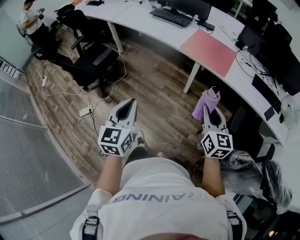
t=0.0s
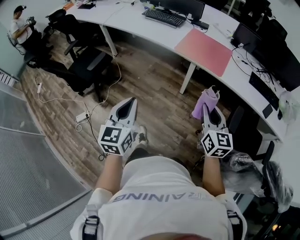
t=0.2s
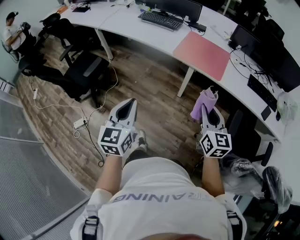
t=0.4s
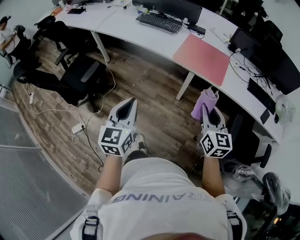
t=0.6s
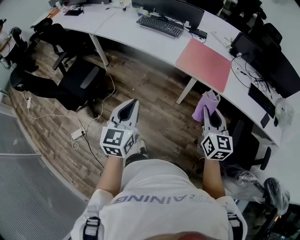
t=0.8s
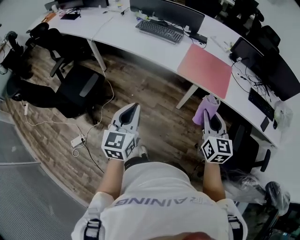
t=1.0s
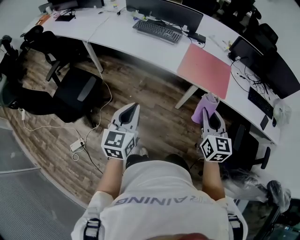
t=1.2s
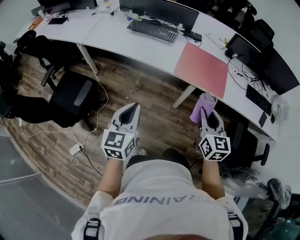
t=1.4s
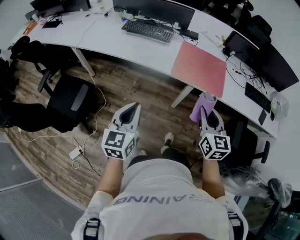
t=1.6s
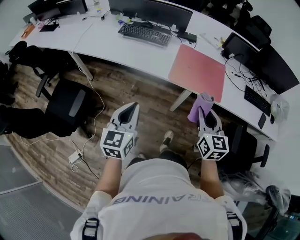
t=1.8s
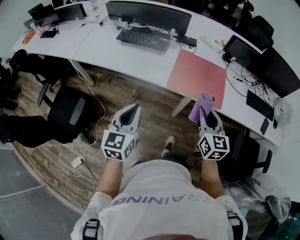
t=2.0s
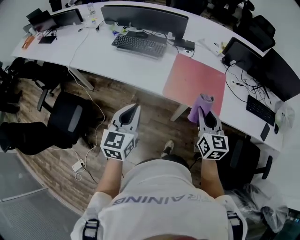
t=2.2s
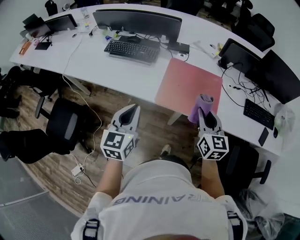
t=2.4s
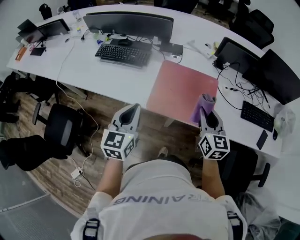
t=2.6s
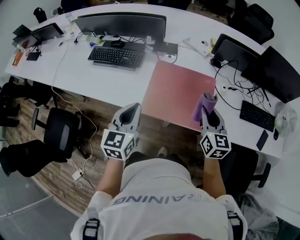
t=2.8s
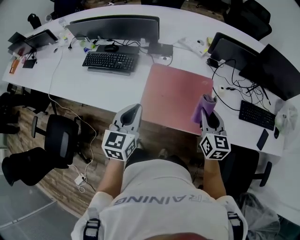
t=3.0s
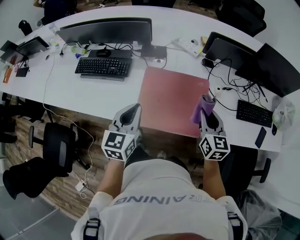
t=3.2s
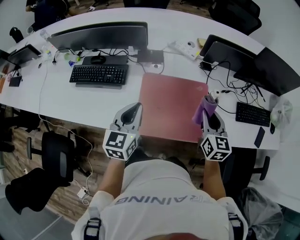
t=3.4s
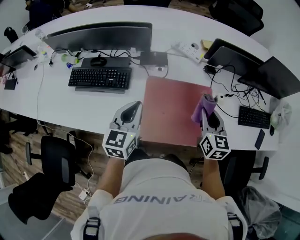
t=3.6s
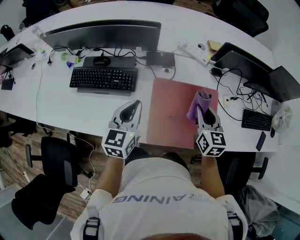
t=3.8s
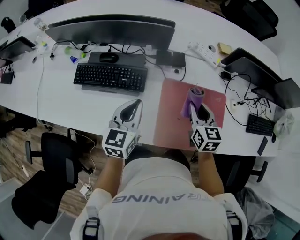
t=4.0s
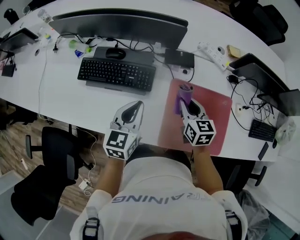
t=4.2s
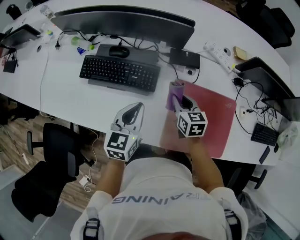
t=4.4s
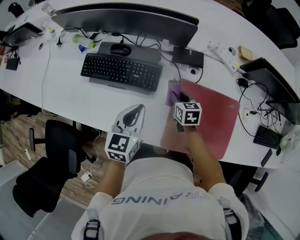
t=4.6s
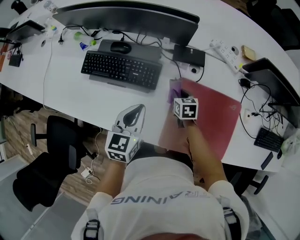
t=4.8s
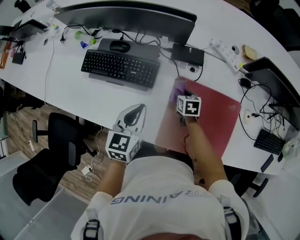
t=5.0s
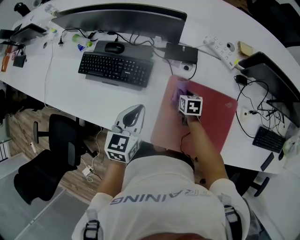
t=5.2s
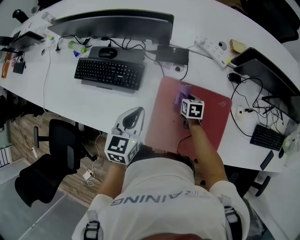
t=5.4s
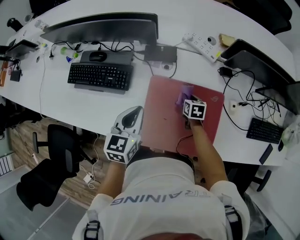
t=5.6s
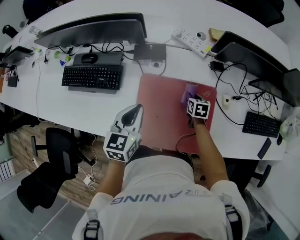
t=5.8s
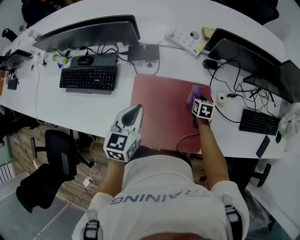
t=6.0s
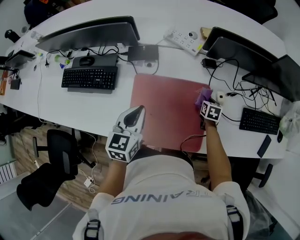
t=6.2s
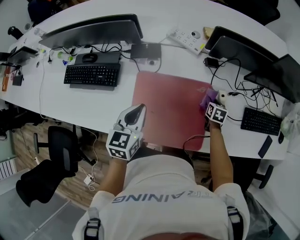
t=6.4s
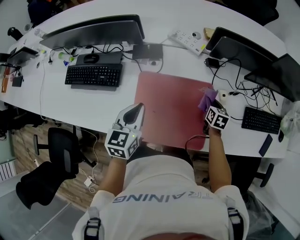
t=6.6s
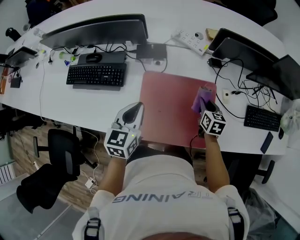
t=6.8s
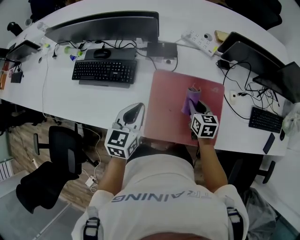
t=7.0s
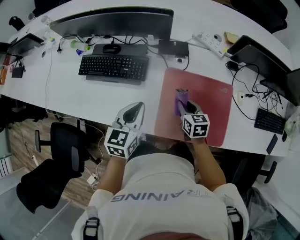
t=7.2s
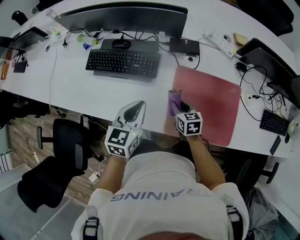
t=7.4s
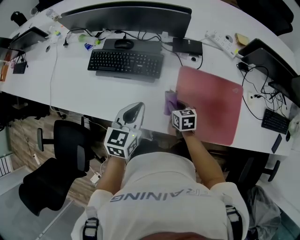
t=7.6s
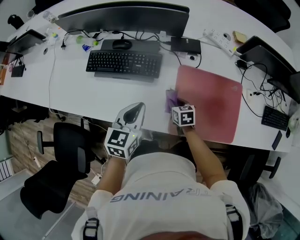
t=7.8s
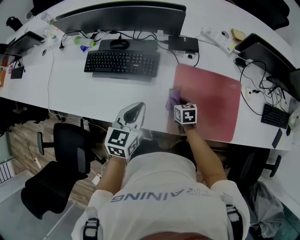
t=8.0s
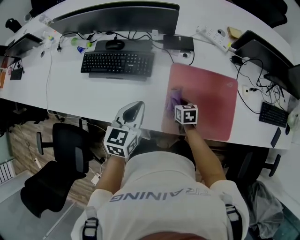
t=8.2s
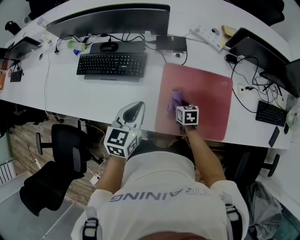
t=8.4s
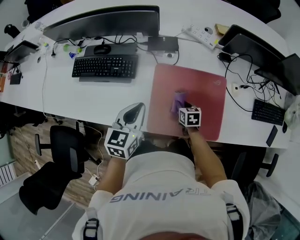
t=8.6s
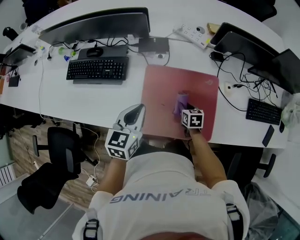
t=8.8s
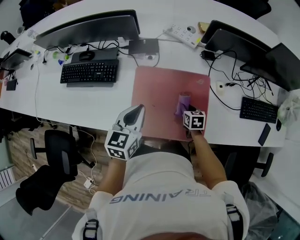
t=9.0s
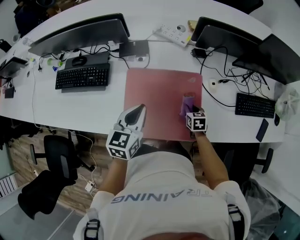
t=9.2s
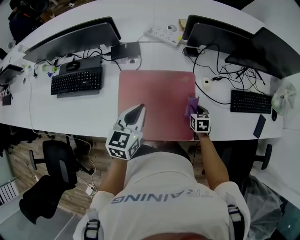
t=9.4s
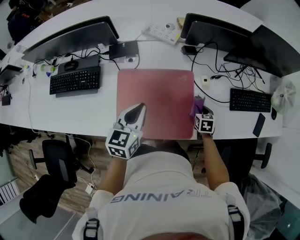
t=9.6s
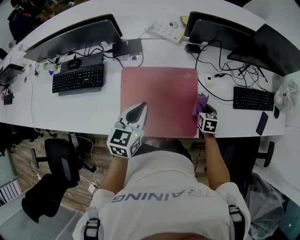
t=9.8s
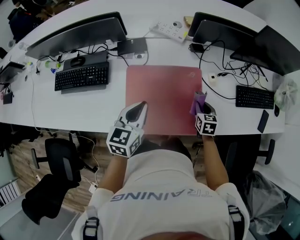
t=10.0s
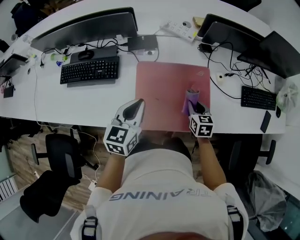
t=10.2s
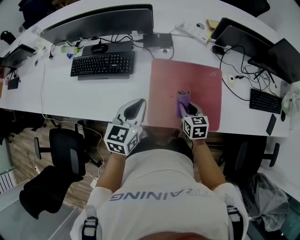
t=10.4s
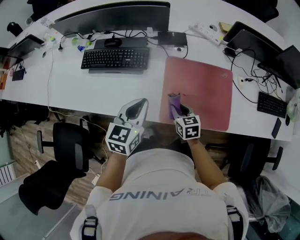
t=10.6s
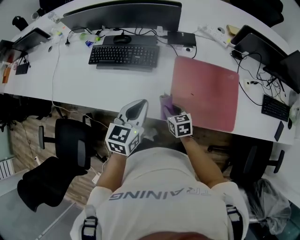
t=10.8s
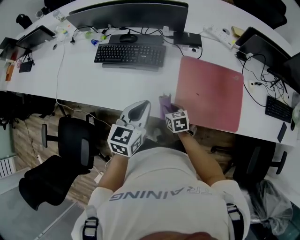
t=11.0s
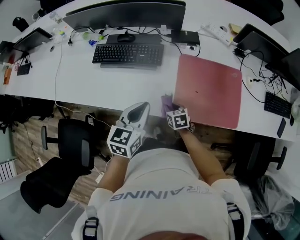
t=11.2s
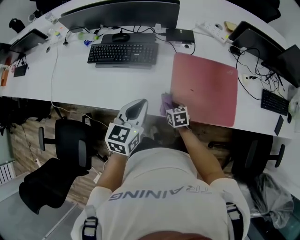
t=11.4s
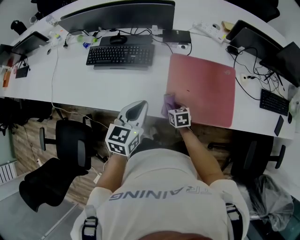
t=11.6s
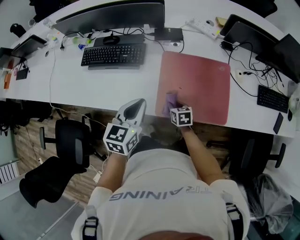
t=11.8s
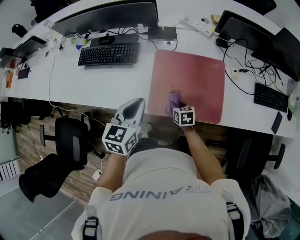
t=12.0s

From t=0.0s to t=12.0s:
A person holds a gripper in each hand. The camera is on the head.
From t=0.0s to t=1.6s: The two grippers go some 30 cm forward and to the left.
From t=1.6s to t=3.0s: The grippers both shift forward and to the right by approximately 40 cm.
From t=3.0s to t=4.4s: The right gripper shifts roughly 40 cm to the left, forward and downward, and rotates about 20 degrees; the left gripper is displaced forward, to the left and downward by some 30 cm.
From t=4.4s to t=6.0s: The left gripper moves to the right, roughly 25 cm, while the right gripper goes about 35 cm to the right, and changes its angle by about 30 degrees.
From t=6.0s to t=7.6s: The right gripper is displaced to the left by approximately 35 cm, and rotates approximately 20 degrees. Meanwhile the left gripper heads to the left, covering some 25 cm.
From t=7.6s to t=9.0s: The grippers both shift to the right by about 25 cm.
From t=9.0s to t=10.4s: The right gripper goes approximately 15 cm to the left, upward and backward, while the left gripper is displaced to the left by some 10 cm.
From t=10.4s to t=12.0s: The left gripper heads backward, covering some 5 cm, and reaches roughly 15 cm to the left, then returns; the right gripper shifts roughly 10 cm downward and backward, and travels to the left and back again, roughly 20 cm each way.

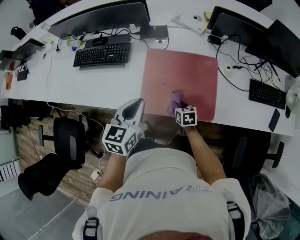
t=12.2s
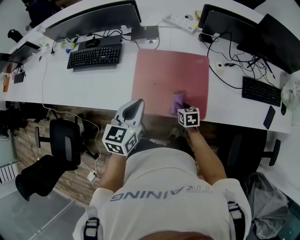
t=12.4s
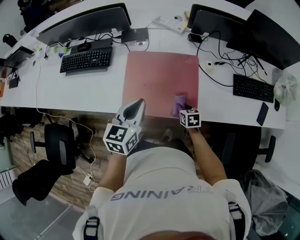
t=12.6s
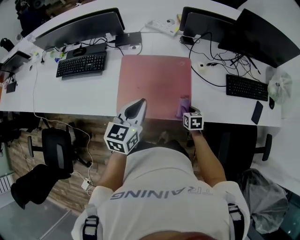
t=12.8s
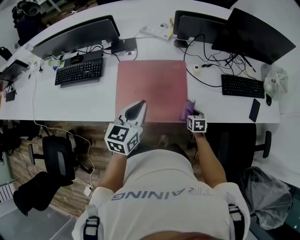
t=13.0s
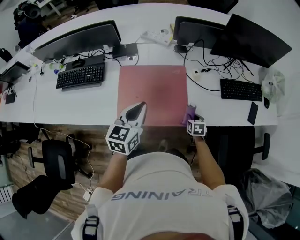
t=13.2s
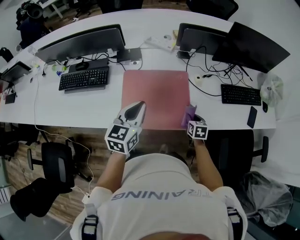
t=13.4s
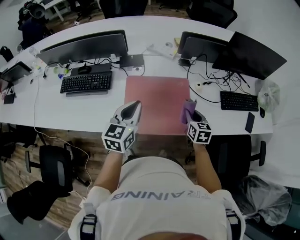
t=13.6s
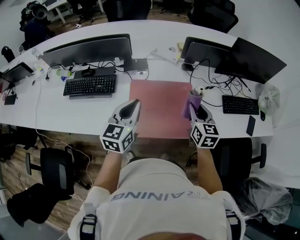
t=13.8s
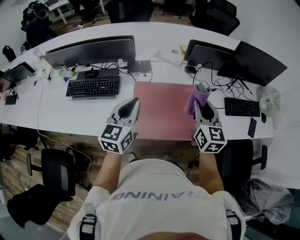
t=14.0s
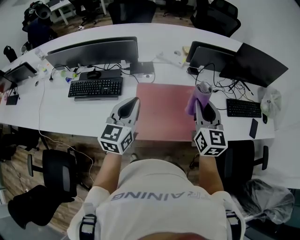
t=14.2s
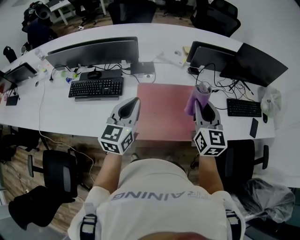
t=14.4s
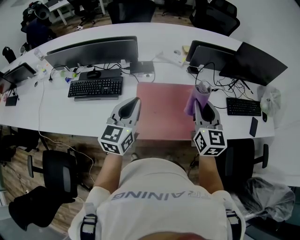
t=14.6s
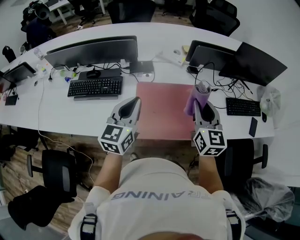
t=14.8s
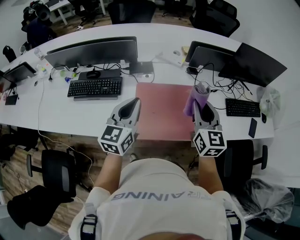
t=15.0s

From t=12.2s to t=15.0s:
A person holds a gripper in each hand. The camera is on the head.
From t=12.2s to t=13.6s: The left gripper is displaced upward and to the right by roughly 10 cm. Meanwhile the right gripper moves upward and to the right, approximately 25 cm, and turns by roughly 30 degrees.
From t=13.6s to t=15.0s: The right gripper is displaced upward and to the left by approximately 25 cm, and swivels about 30 degrees, while the left gripper shifts about 10 cm to the left and upward.

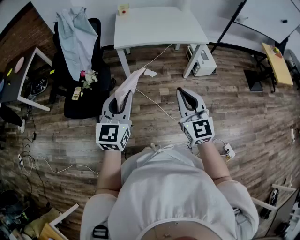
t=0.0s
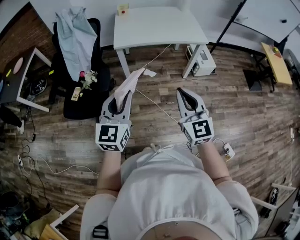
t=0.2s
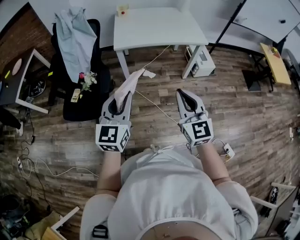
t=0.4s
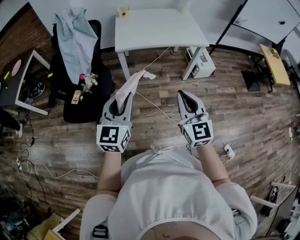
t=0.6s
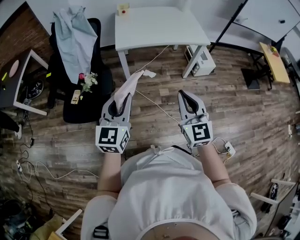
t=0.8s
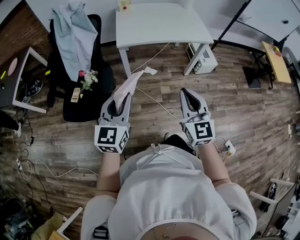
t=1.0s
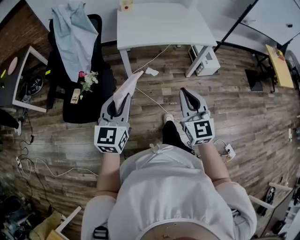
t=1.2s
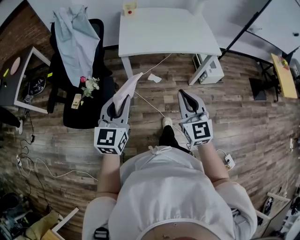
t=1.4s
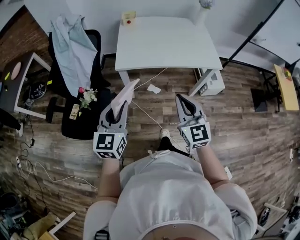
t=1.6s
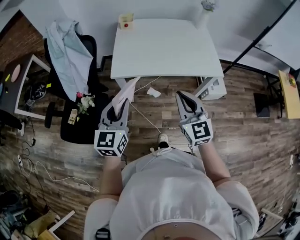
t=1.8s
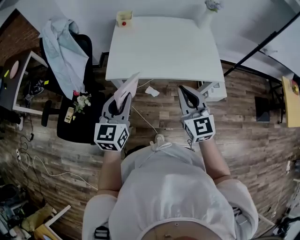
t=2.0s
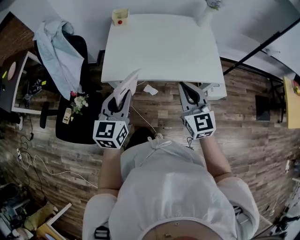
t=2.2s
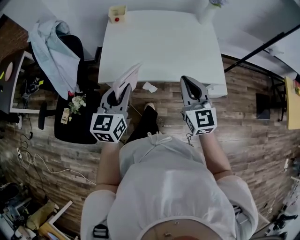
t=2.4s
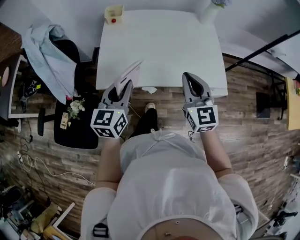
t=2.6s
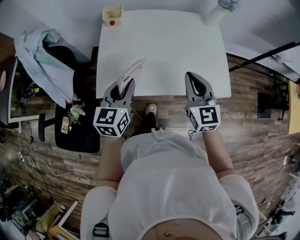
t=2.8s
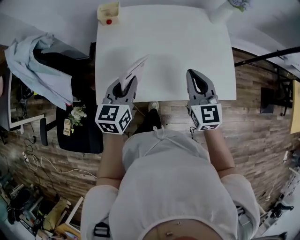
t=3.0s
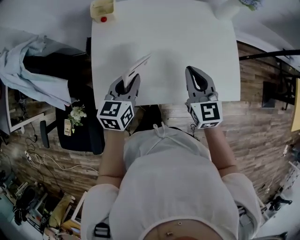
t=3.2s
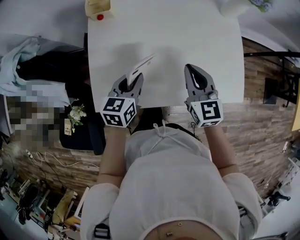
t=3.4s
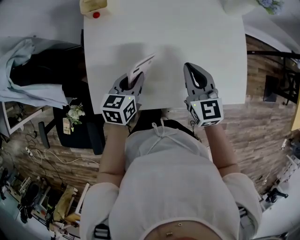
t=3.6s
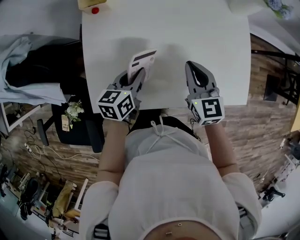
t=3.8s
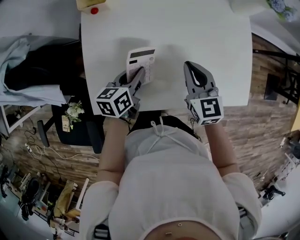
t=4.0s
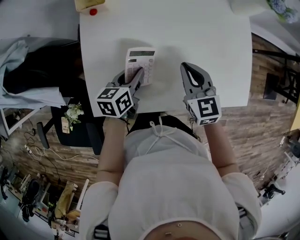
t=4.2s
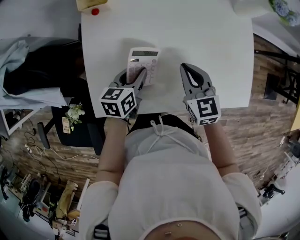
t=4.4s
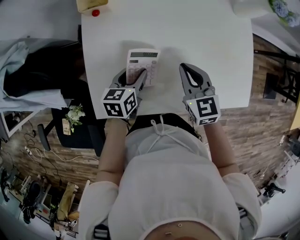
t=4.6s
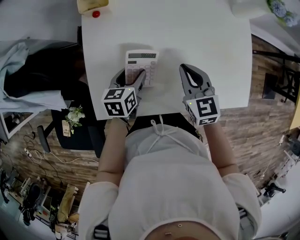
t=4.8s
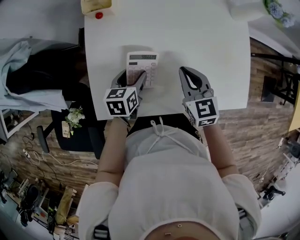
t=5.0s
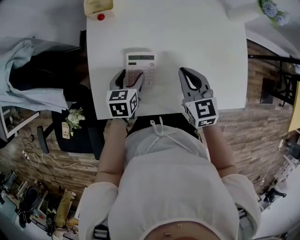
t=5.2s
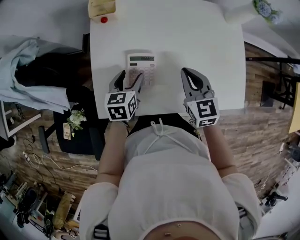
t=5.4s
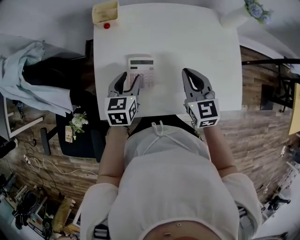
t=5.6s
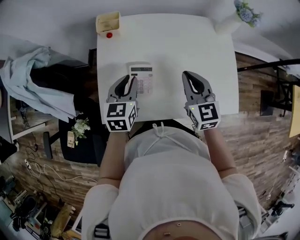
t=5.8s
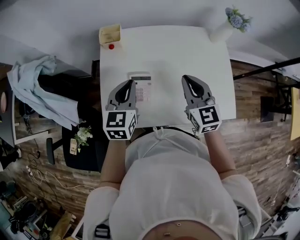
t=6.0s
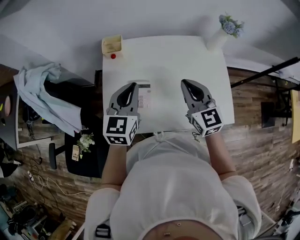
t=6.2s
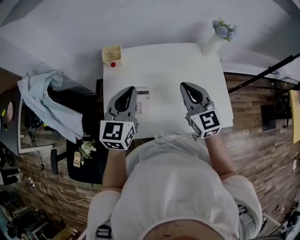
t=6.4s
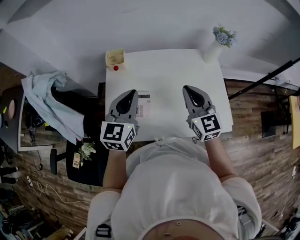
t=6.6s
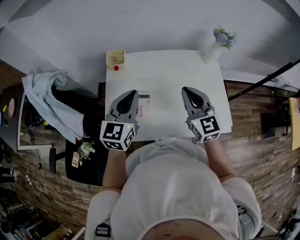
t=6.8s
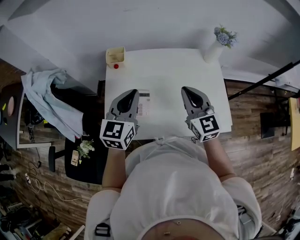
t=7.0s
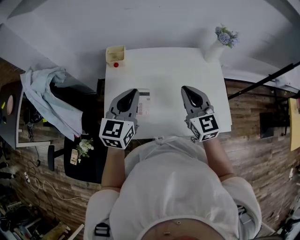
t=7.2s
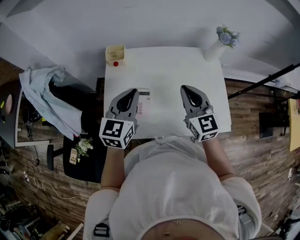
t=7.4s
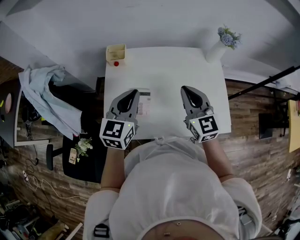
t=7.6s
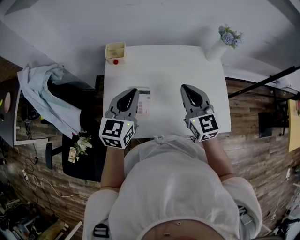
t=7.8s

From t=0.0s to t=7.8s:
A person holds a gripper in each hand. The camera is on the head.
From t=0.0s to t=1.6s: Both grippers travel together forward, about 25 cm.
From t=1.6s to t=3.2s: The two grippers travel together, forward, approximately 50 cm. The left gripper swivels about 30 degrees.
From t=3.2s to t=4.6s: The right gripper travels downward, forward and to the left by about 15 cm. Meanwhile the left gripper moves downward and forward, approximately 15 cm, and opens its fingers.
From t=4.6s to t=6.2s: Both grippers move upward, approximately 25 cm. The left gripper changes its angle by roughly 40 degrees, and closes. Meanwhile the right gripper changes its angle by roughly 20 degrees.
From t=6.2s to t=7.8s: The grippers move only a little.

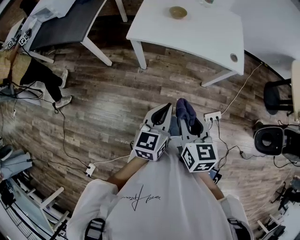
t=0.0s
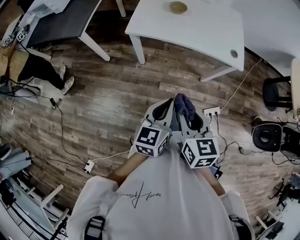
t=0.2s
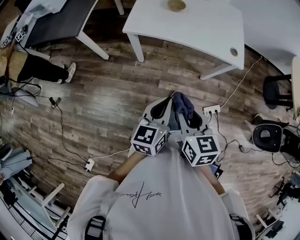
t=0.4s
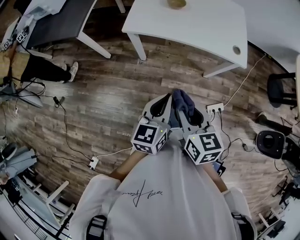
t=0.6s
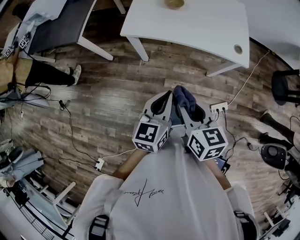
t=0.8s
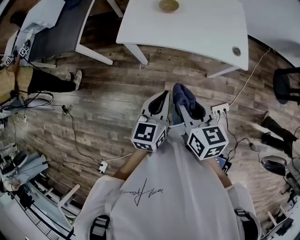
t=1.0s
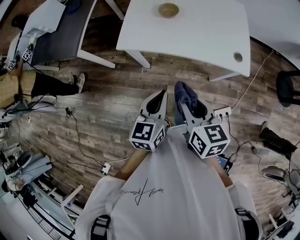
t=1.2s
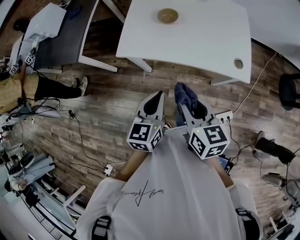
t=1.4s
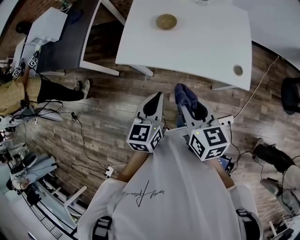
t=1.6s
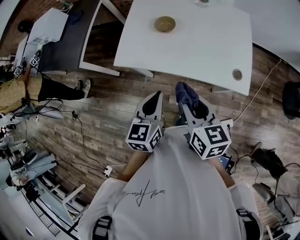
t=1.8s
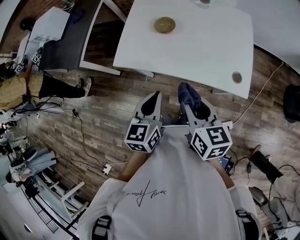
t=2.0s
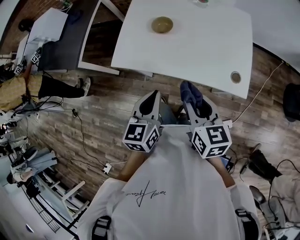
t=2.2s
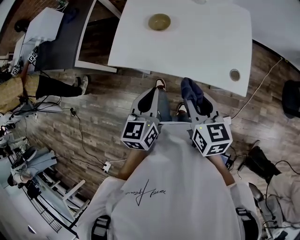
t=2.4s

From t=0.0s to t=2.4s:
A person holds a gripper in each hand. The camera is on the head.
From t=0.0s to t=1.2s: Both grippers move forward, some 15 cm.
From t=1.2s to t=2.4s: The left gripper heads forward, covering about 10 cm; the right gripper moves forward and to the right, some 15 cm.
